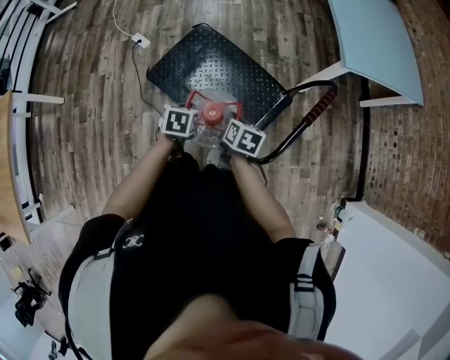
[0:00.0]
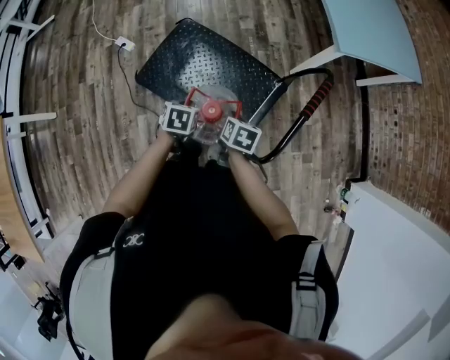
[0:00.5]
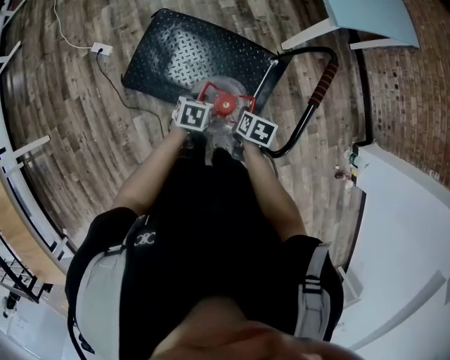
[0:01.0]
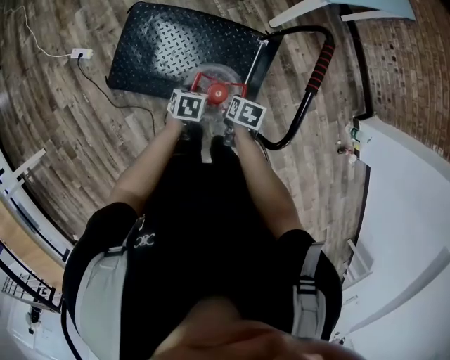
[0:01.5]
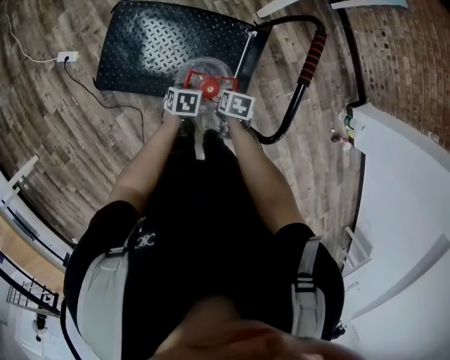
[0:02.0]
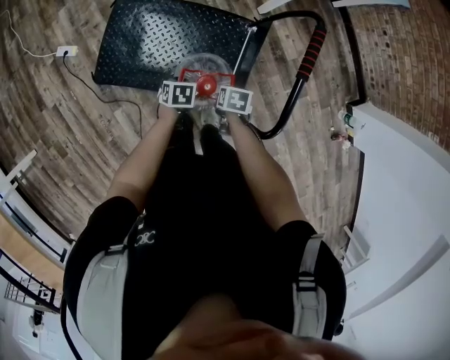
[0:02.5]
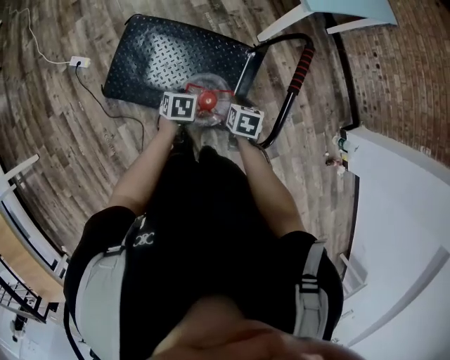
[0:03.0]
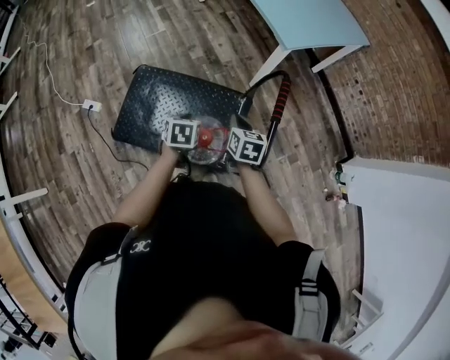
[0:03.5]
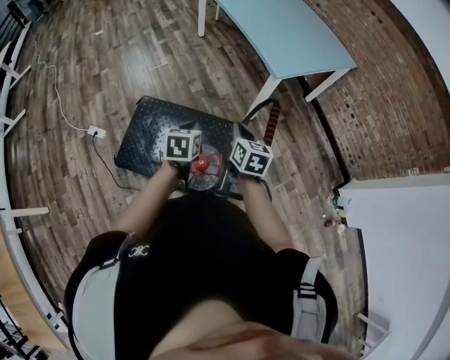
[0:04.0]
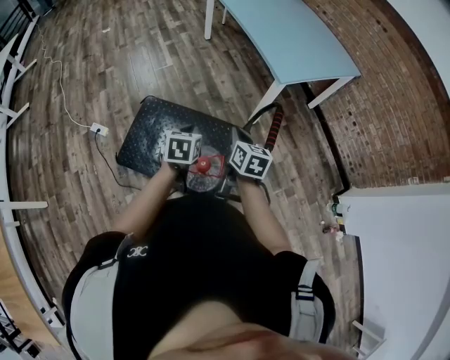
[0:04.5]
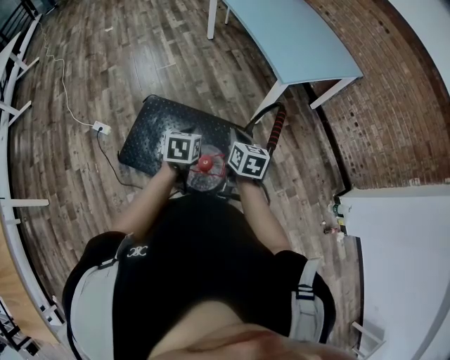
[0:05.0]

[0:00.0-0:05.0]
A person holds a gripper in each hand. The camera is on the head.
0:00.0 to 0:02.5: The grippers both shift downward by roughly 15 cm. The right gripper turns by approximately 30 degrees. The left gripper changes its angle by approximately 20 degrees, and opens up.
0:02.5 to 0:05.0: Both grippers travel together upward, roughly 30 cm. The left gripper rotates some 30 degrees, and closes; the right gripper tilts its fingers approximately 40 degrees upward.

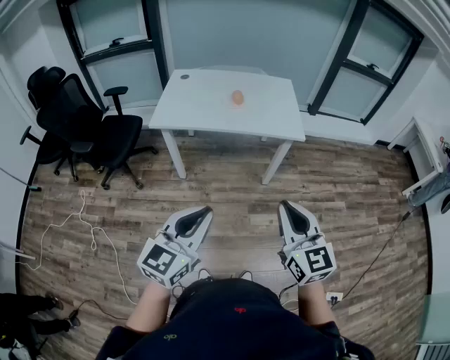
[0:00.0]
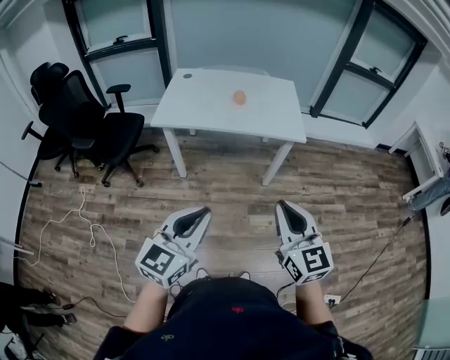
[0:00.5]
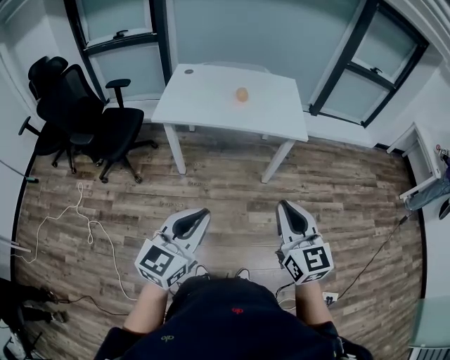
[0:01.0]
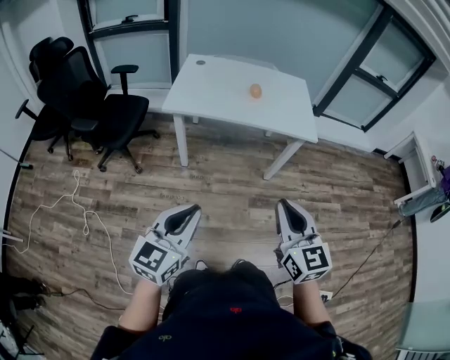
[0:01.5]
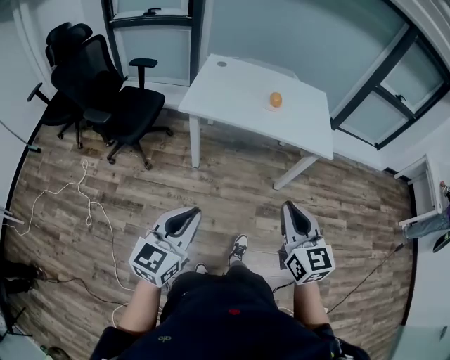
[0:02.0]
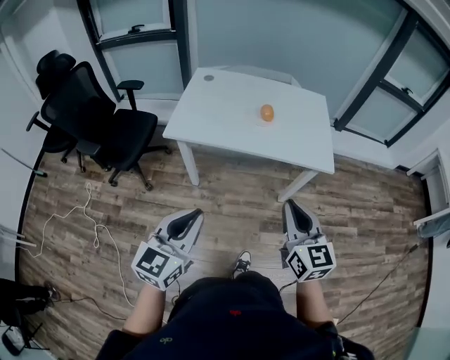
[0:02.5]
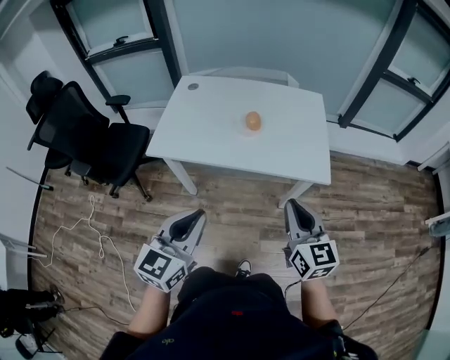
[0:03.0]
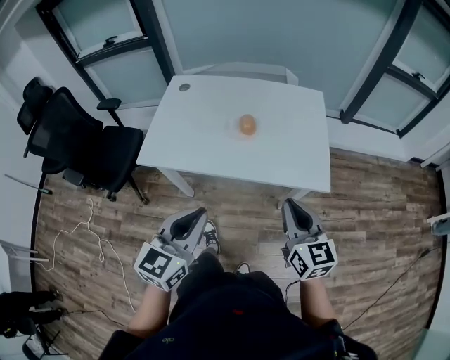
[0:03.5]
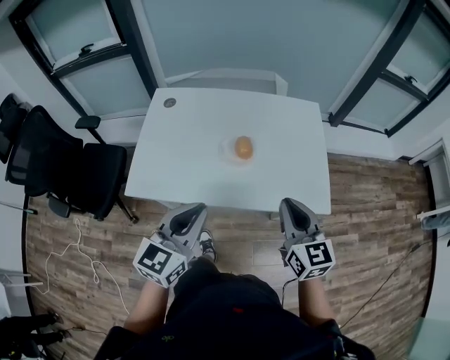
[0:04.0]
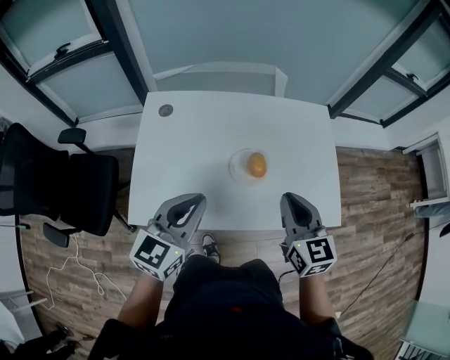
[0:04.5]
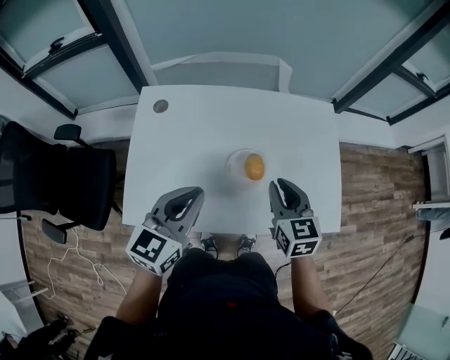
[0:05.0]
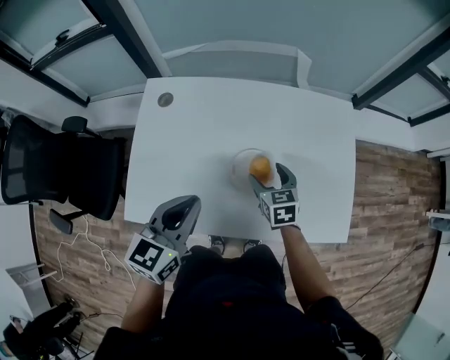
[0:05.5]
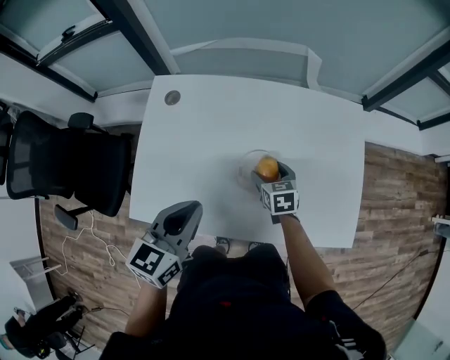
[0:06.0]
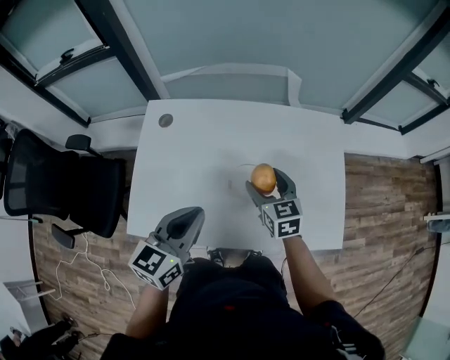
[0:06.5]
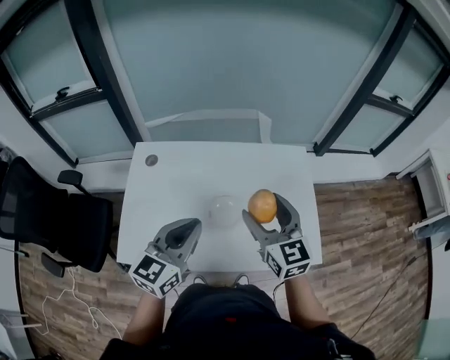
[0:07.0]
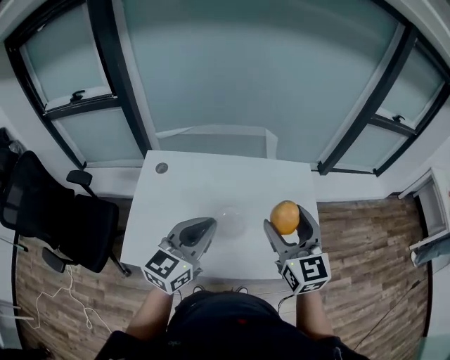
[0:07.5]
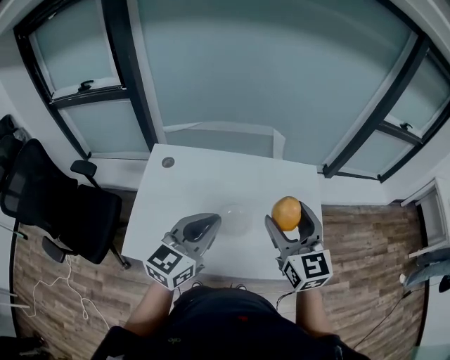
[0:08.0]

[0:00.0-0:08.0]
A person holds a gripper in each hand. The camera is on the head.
0:00.0 to 0:02.0: The right gripper moves to the left and forward, about 15 cm. Meanwhile the left gripper travels to the left by roughly 15 cm.
0:02.0 to 0:04.0: The two grippers travel together, forward, roughly 50 cm.
0:04.0 to 0:06.0: The left gripper travels forward by about 20 cm. The right gripper travels forward, downward and to the left by approximately 40 cm, tilts its fingers some 30 degrees downward, and opens its fingers.
0:06.0 to 0:08.0: The left gripper goes approximately 15 cm upward and to the right, and swivels roughly 20 degrees. Meanwhile the right gripper goes about 35 cm upward, and points its fingers approximately 40 degrees further upward.

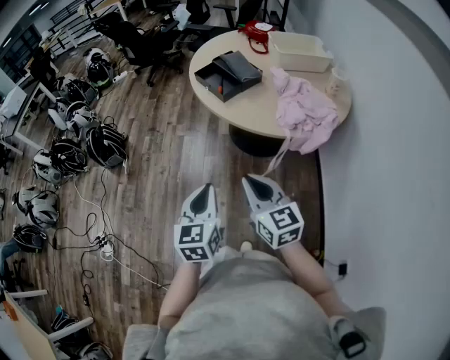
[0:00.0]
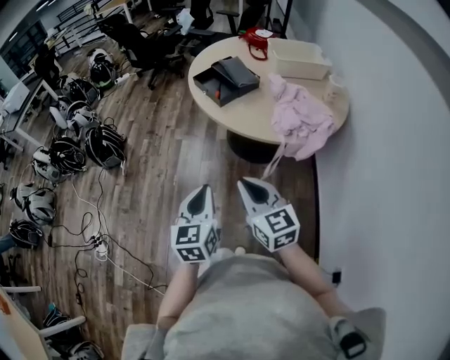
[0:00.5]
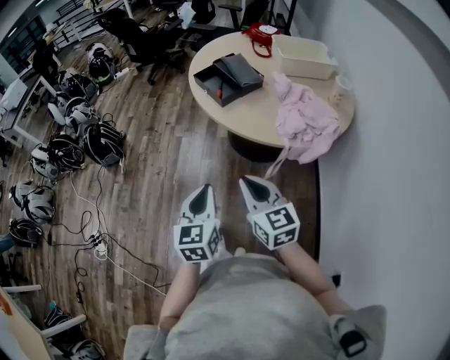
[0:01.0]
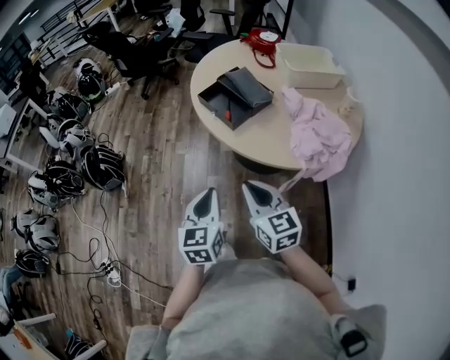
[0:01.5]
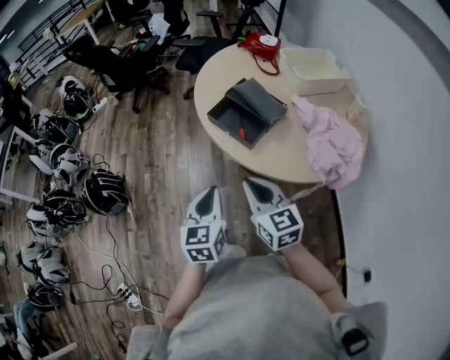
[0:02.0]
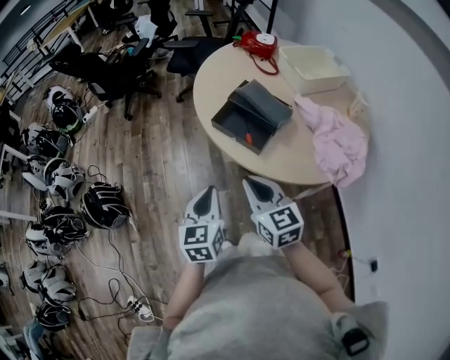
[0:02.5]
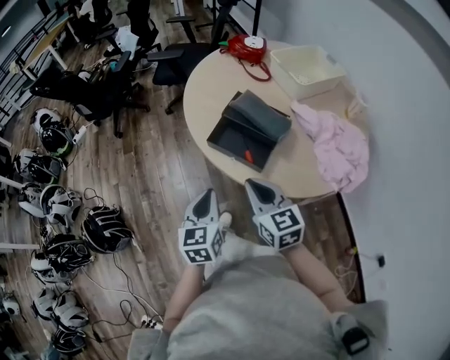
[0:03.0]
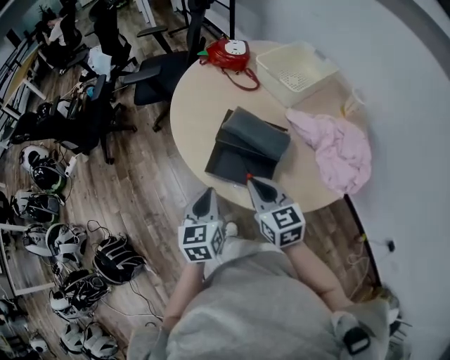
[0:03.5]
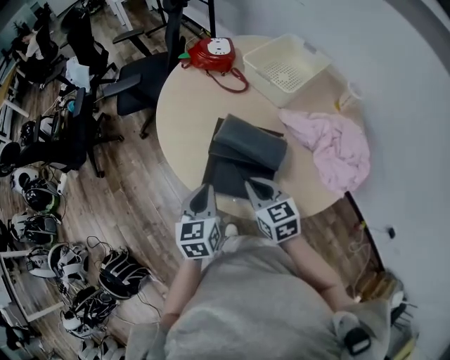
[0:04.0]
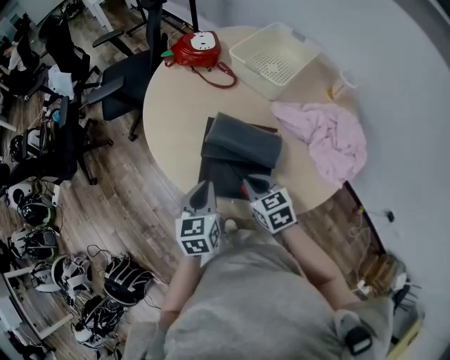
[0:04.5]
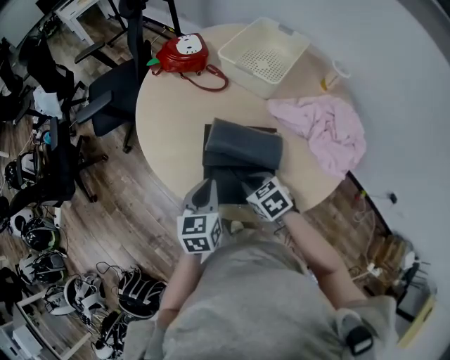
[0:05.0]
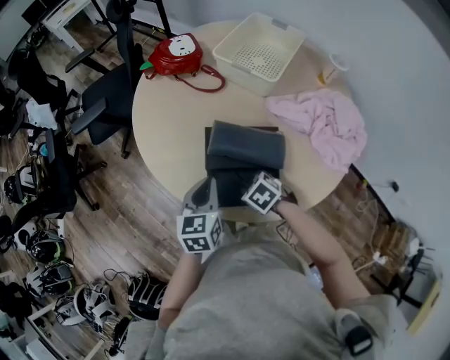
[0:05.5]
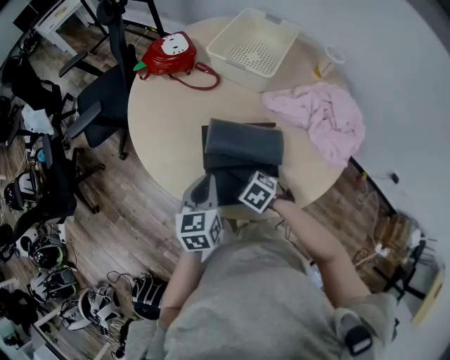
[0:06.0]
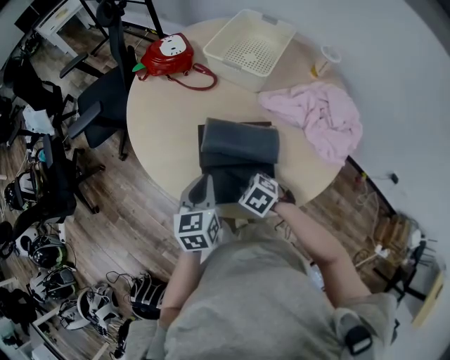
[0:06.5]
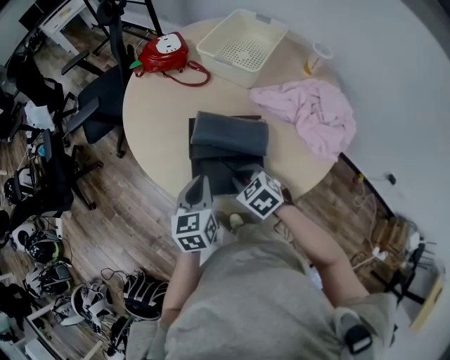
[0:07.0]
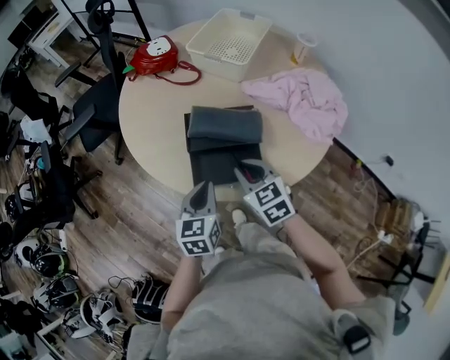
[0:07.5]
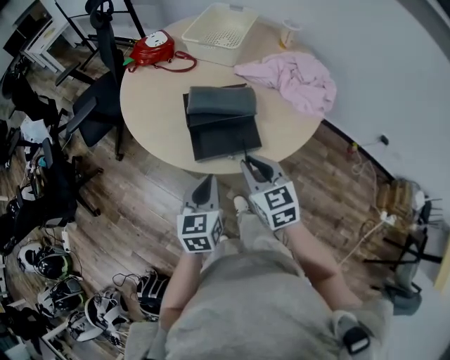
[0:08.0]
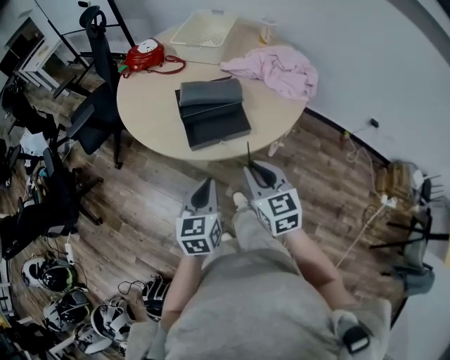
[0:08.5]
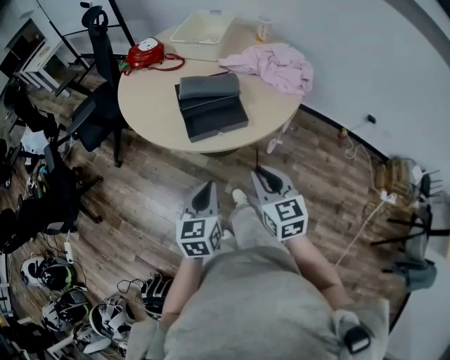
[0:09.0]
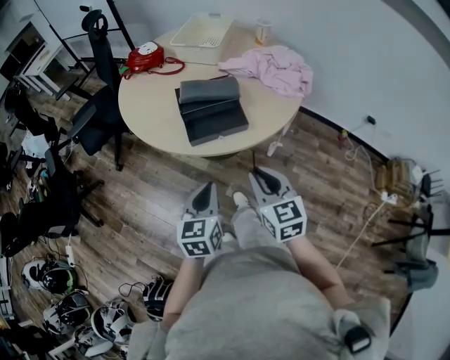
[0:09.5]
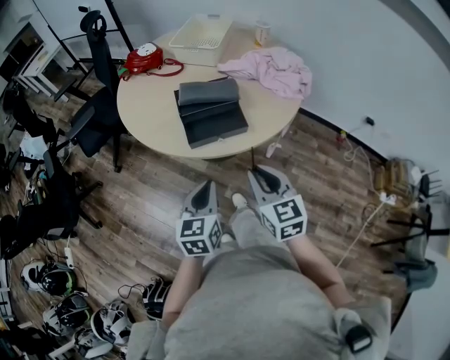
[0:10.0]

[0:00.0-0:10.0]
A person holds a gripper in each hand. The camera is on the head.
0:00.0 to 0:02.0: Both grippers move forward, roughly 30 cm.
0:02.0 to 0:04.0: The right gripper ends up some 30 cm from where it was, and turns by about 30 degrees. Meanwhile the left gripper ends up some 35 cm from where it was, and swivels roughly 30 degrees.
0:04.0 to 0:06.0: The right gripper is displaced downward by some 15 cm, and points its fingers some 40 degrees further downward, while the left gripper changes place by roughly 10 cm.
0:06.0 to 0:08.0: The left gripper shifts by some 20 cm, while the right gripper goes about 20 cm upward, and points its fingers about 50 degrees further upward.
0:08.0 to 0:10.0: The two grippers go some 15 cm backward.

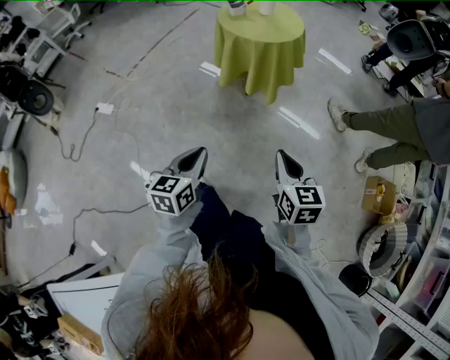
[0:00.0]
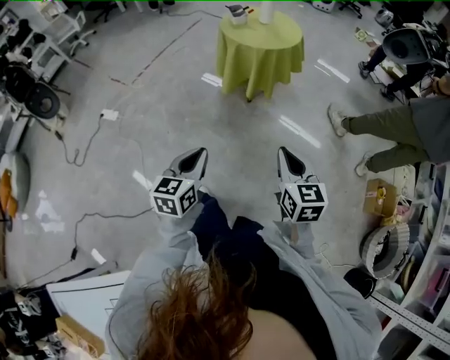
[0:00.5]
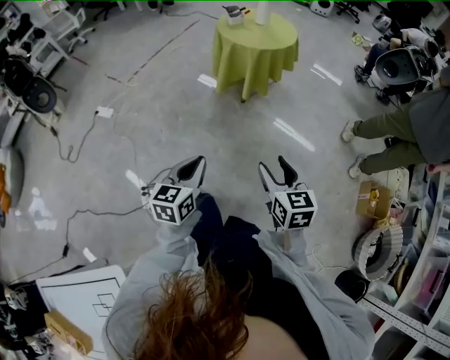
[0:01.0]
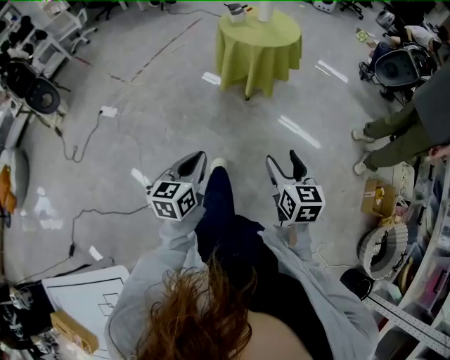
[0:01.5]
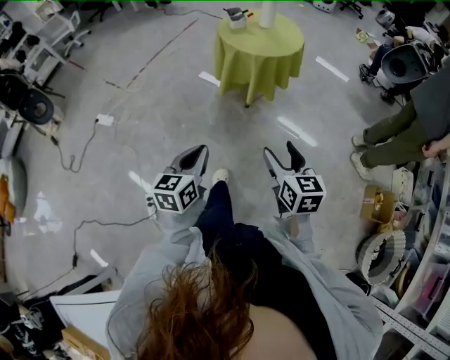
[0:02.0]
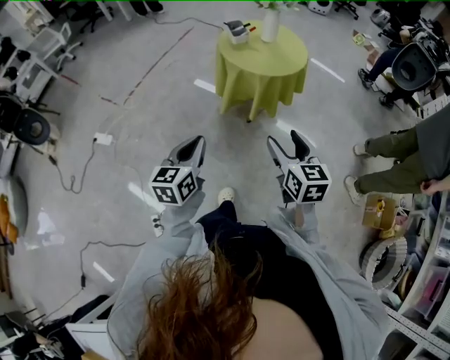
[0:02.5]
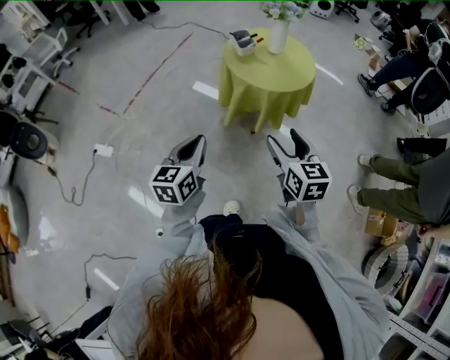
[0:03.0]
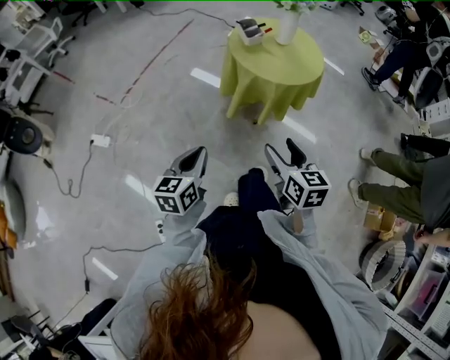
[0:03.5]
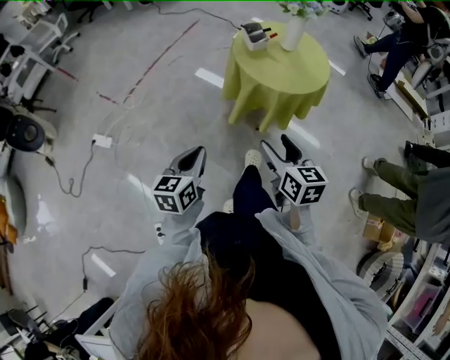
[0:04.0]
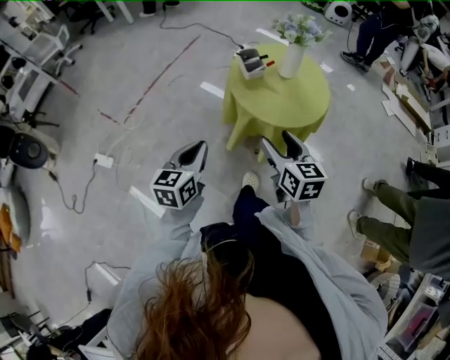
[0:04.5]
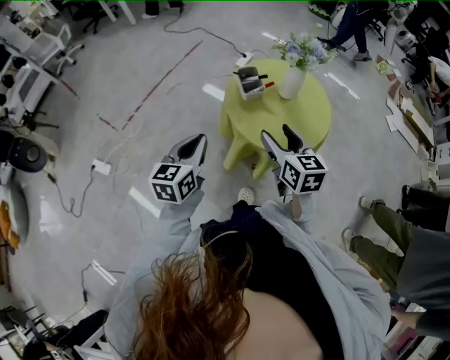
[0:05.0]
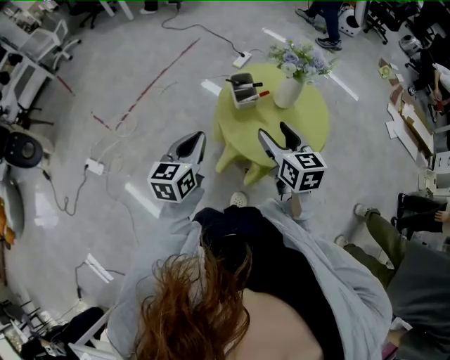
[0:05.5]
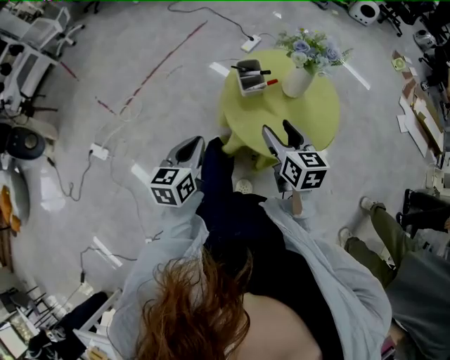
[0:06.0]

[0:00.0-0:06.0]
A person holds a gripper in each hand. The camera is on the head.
0:00.0 to 0:02.0: Both grippers move forward, roughly 5 cm. The right gripper opens its fingers.
0:02.0 to 0:04.0: Both grippers move forward and to the left, some 25 cm.
0:04.0 to 0:06.0: Both grippers travel together forward, about 30 cm.
